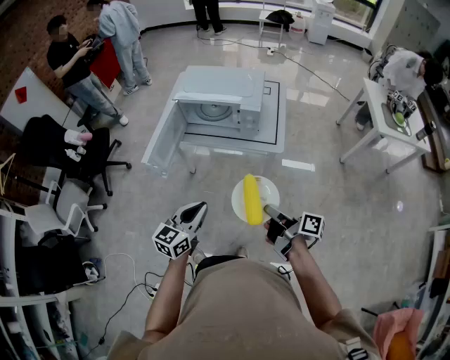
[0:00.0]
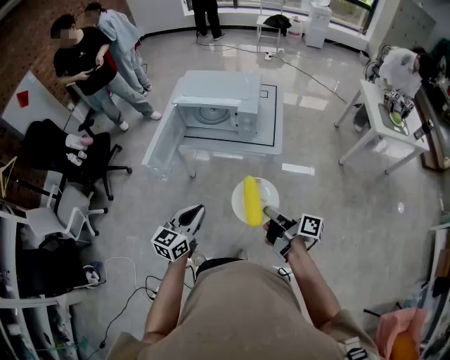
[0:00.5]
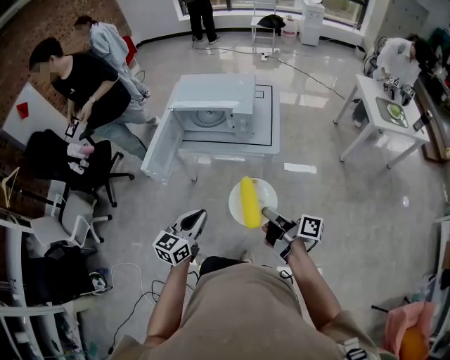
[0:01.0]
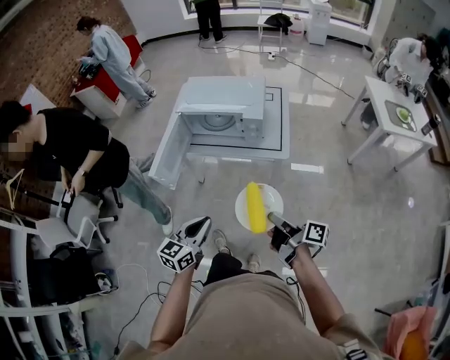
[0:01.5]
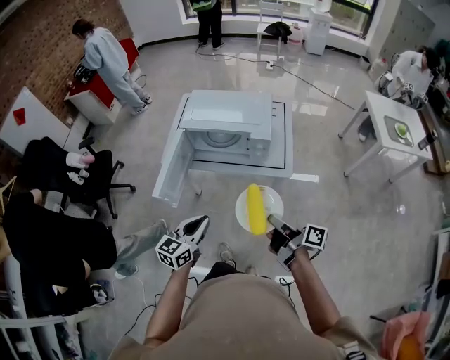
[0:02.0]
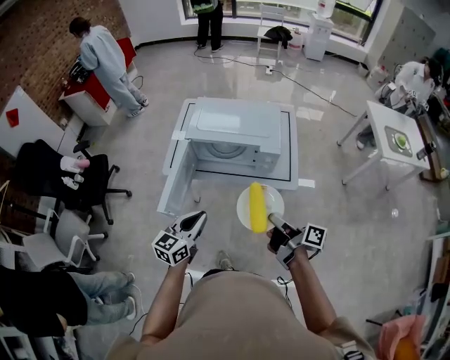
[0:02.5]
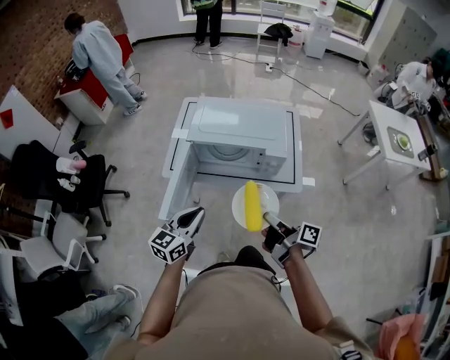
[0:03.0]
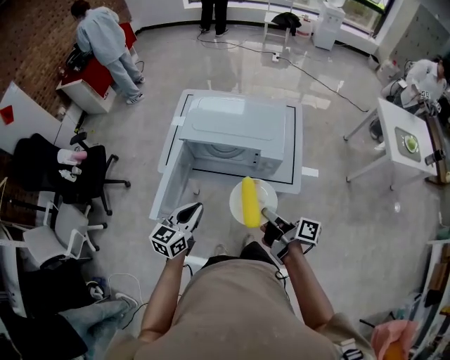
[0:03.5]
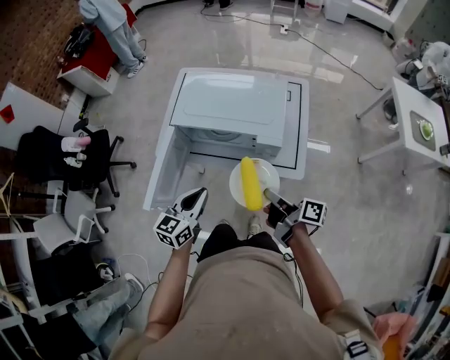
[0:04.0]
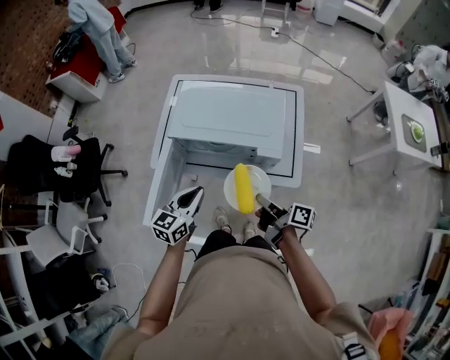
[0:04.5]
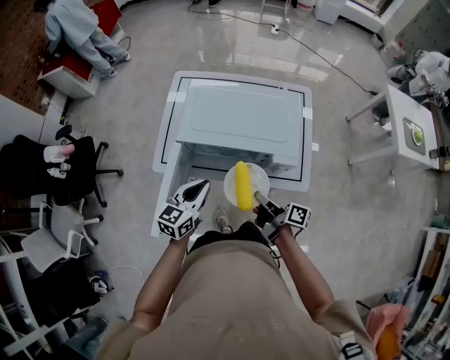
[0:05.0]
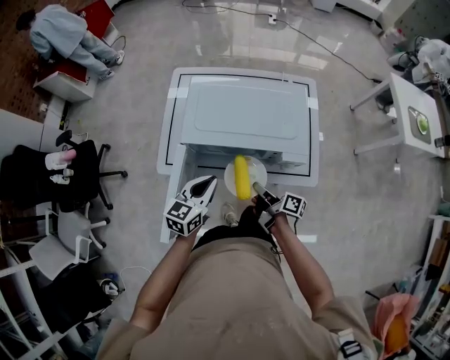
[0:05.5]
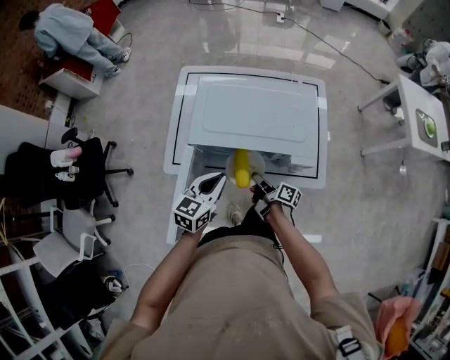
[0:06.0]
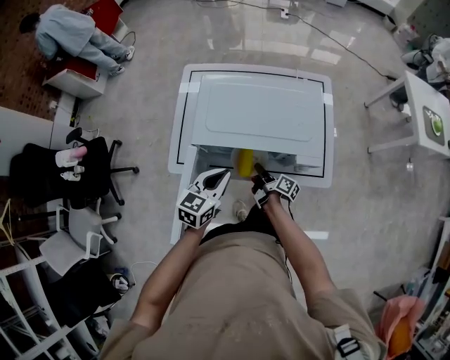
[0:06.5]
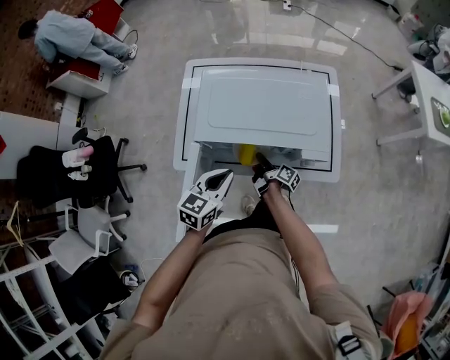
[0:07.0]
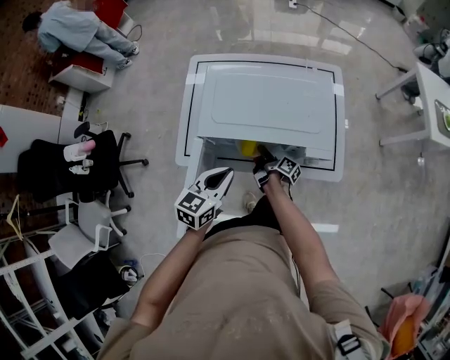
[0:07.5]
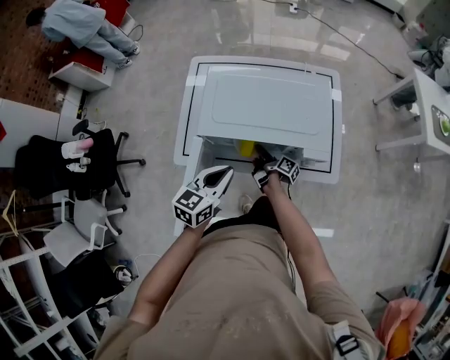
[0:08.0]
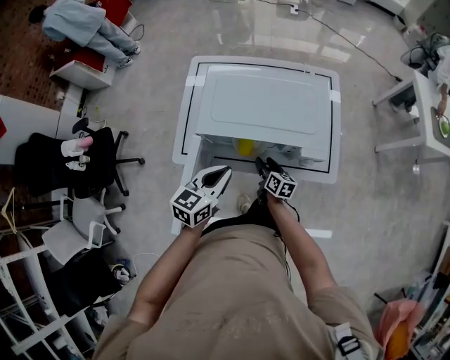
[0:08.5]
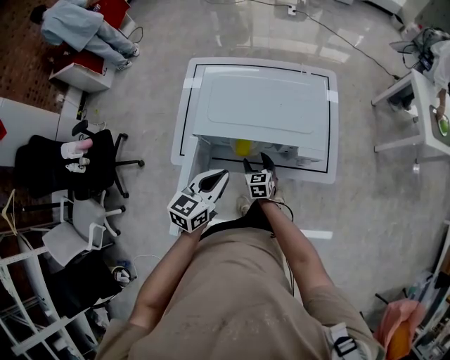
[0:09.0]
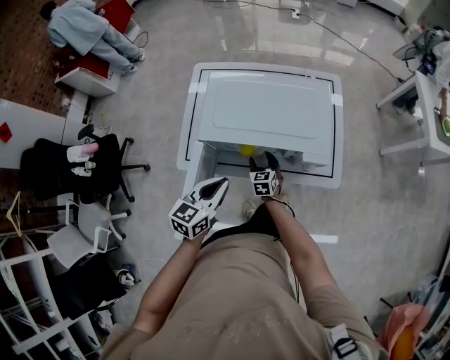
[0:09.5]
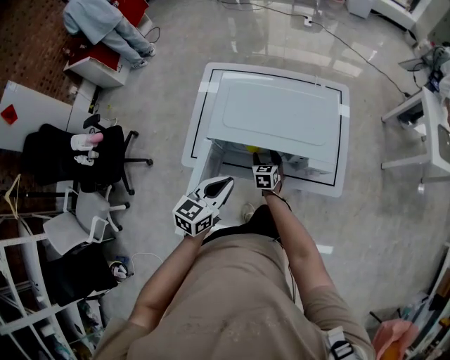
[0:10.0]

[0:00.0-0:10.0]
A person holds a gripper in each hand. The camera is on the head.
0:00.0 to 0:02.0: The left gripper travels forward and to the left by approximately 10 cm; the right gripper heads forward, covering about 10 cm.
0:02.0 to 0:04.0: Both grippers move forward, some 20 cm.
0:04.0 to 0:06.0: The left gripper travels forward and downward by some 15 cm; the right gripper heads downward, forward and to the left, covering about 30 cm.
0:06.0 to 0:08.0: The right gripper moves forward and downward, about 10 cm, and opens up.
0:08.0 to 0:10.0: The right gripper rotates around the line of its fingers by some 80 degrees, counterclockwise from behind, and opens its fingers.

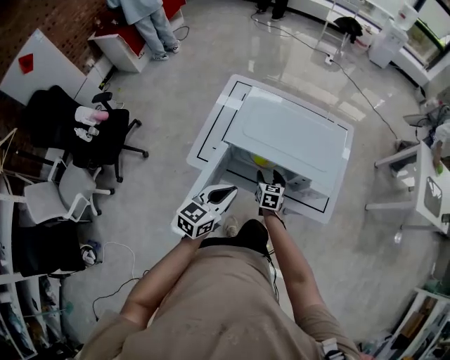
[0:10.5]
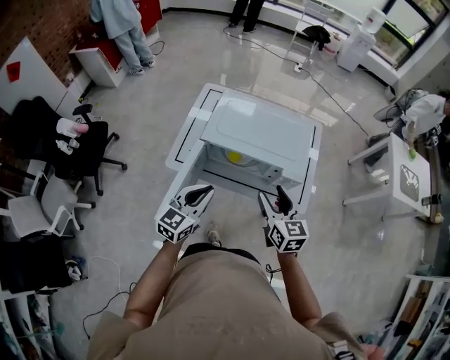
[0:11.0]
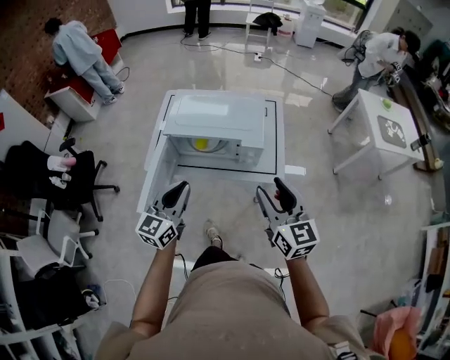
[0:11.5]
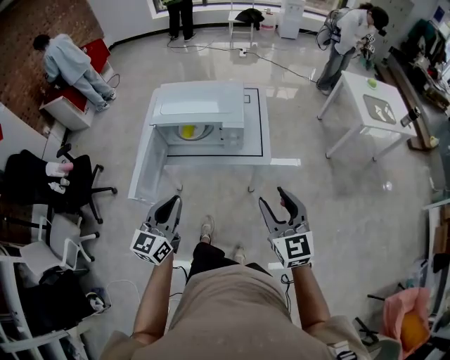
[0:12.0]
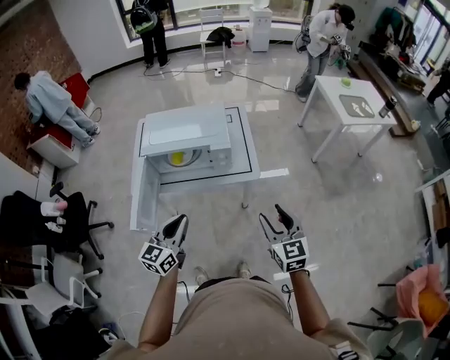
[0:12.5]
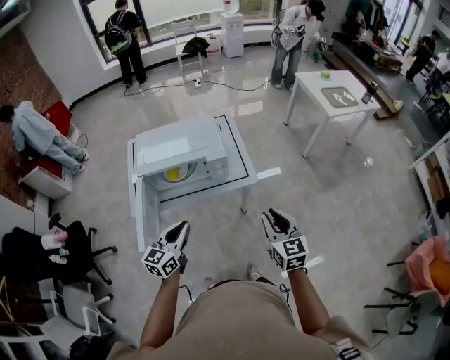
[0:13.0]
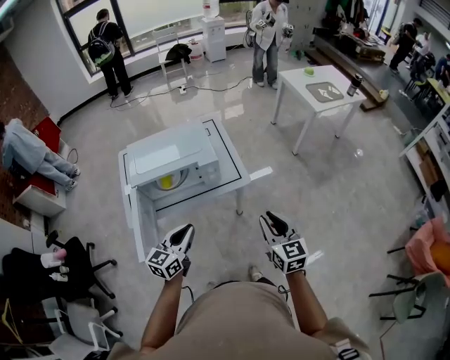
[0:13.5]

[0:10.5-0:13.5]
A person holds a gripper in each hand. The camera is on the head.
0:10.5 to 0:12.0: The left gripper goes about 30 cm backward, to the right and upward; the right gripper travels backward, upward and to the right by approximately 60 cm, and rotates roughly 30 degrees.
0:12.0 to 0:13.5: The left gripper is displaced forward and downward by some 10 cm, and turns by roughly 30 degrees; the right gripper heads downward, covering about 5 cm, swivels approximately 30 degrees, and closes its fingers.

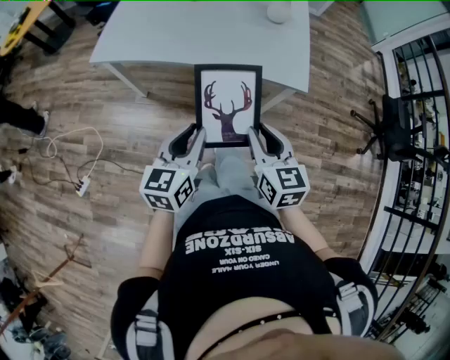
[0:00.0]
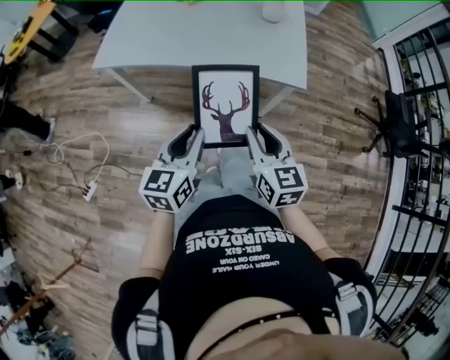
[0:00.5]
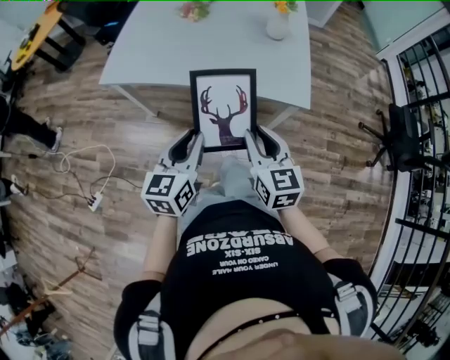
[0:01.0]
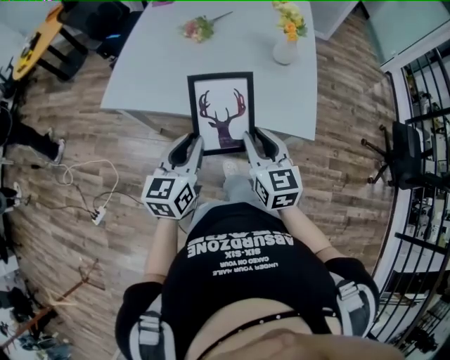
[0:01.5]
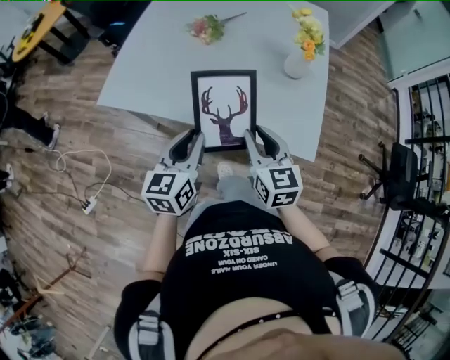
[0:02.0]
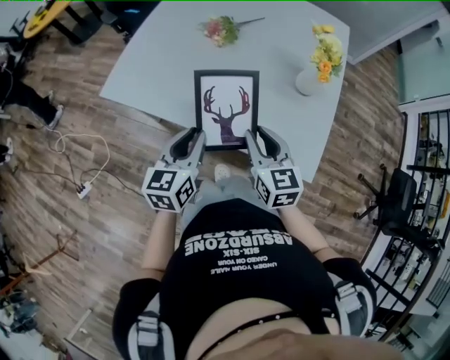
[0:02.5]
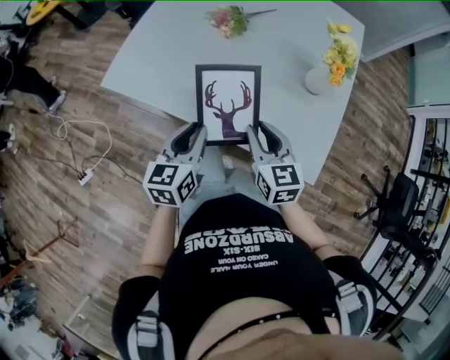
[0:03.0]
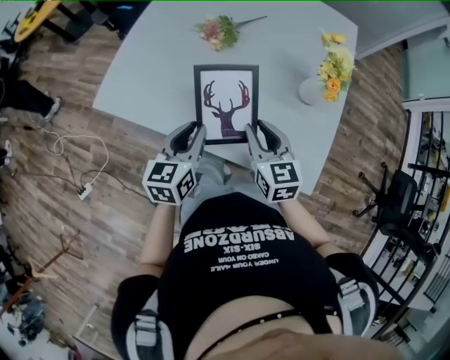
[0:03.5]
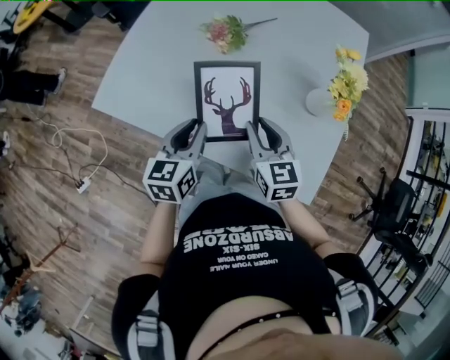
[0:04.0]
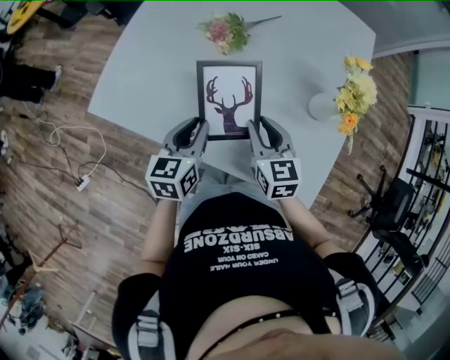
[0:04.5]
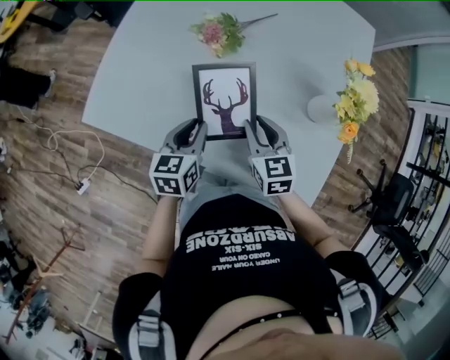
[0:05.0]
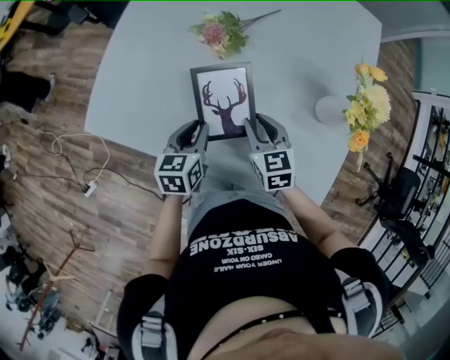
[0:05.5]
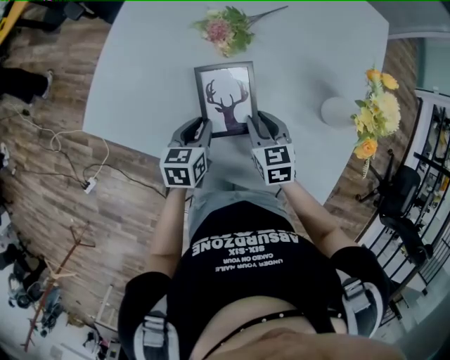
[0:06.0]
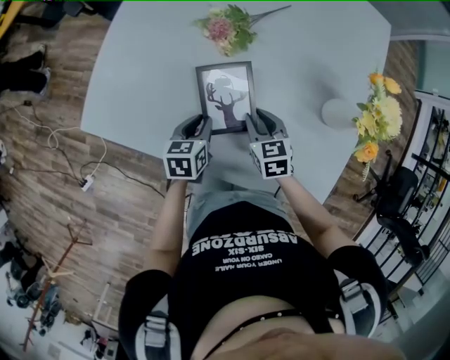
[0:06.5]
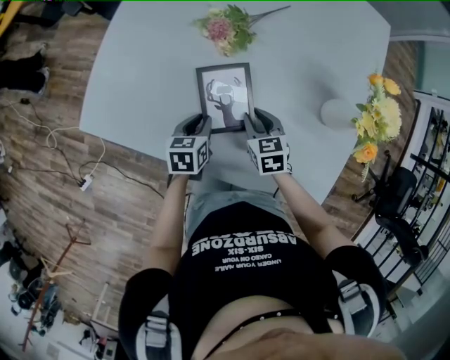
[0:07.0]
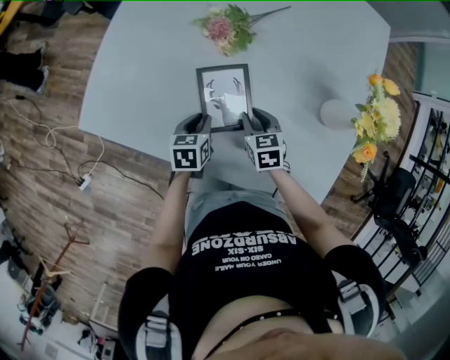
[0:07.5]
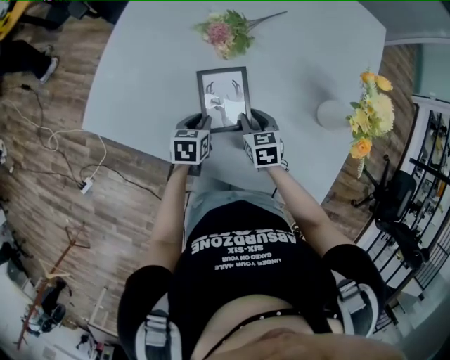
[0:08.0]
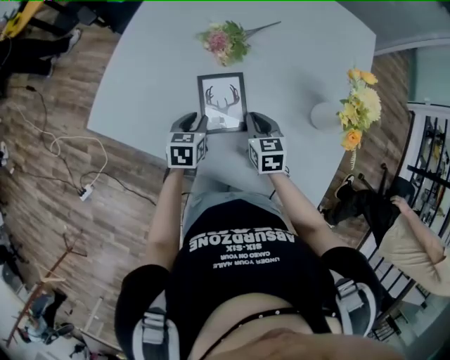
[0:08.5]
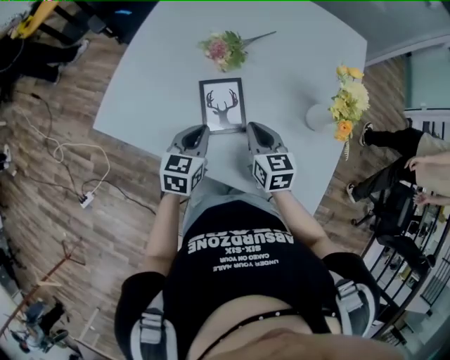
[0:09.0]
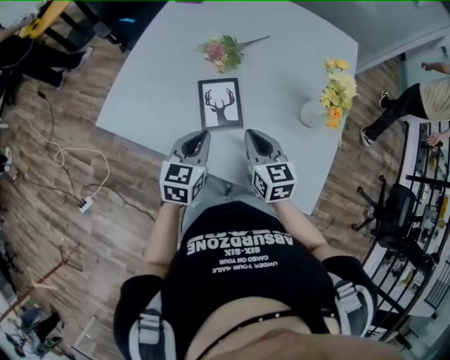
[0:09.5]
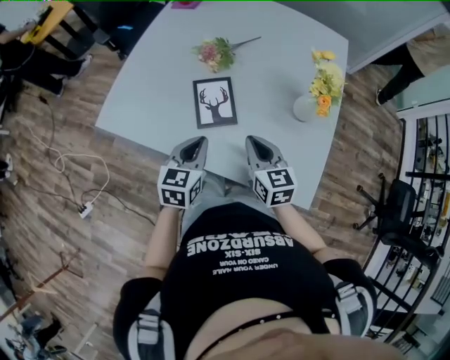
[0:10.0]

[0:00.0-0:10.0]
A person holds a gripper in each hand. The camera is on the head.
0:00.0 to 0:02.0: Both grippers move forward, roughly 25 cm.
0:02.0 to 0:04.0: Both grippers move forward, about 20 cm.
0:04.0 to 0:06.0: The two grippers go some 15 cm downward and forward.
0:06.0 to 0:08.0: The grippers both shift downward by about 5 cm.
0:08.0 to 0:10.0: Both grippers move upward and backward, roughly 25 cm. The left gripper swivels some 30 degrees, while the right gripper changes its angle by approximately 30 degrees, and closes up.

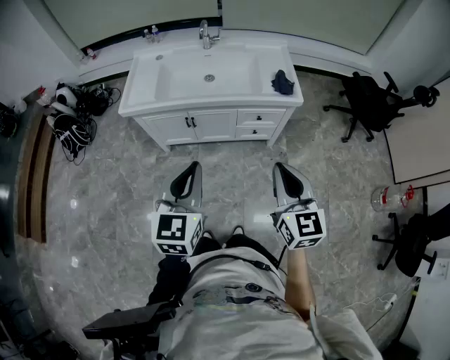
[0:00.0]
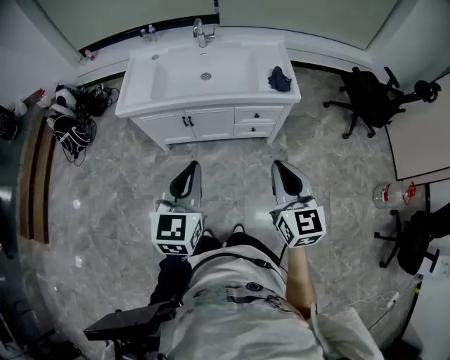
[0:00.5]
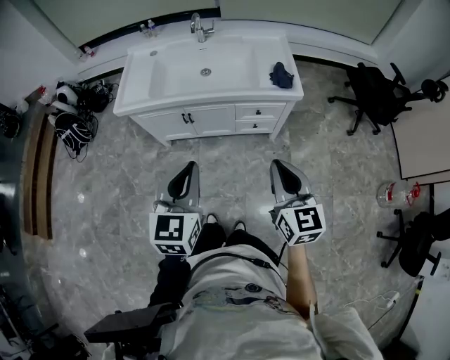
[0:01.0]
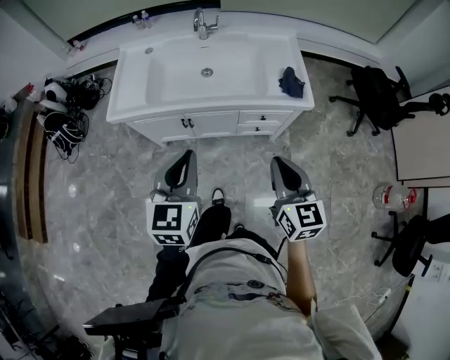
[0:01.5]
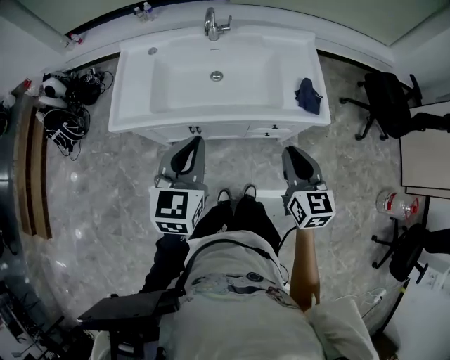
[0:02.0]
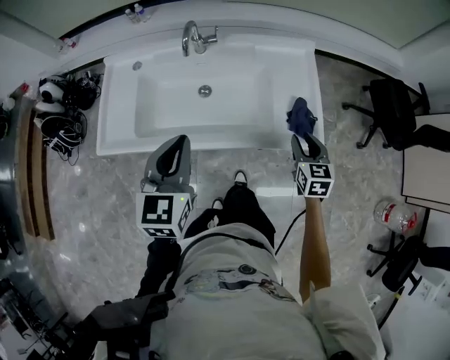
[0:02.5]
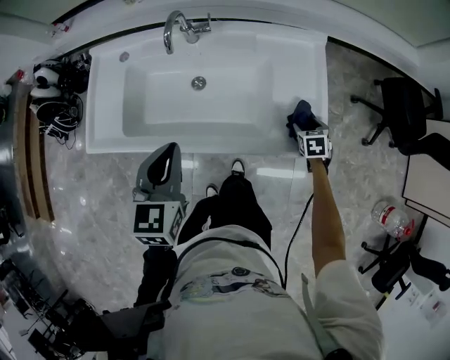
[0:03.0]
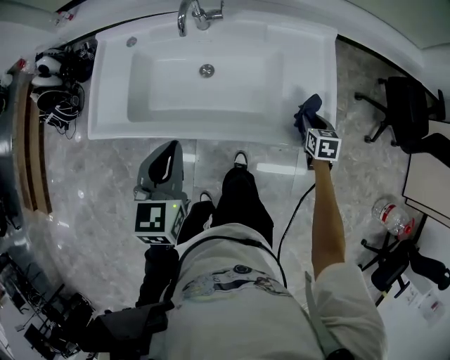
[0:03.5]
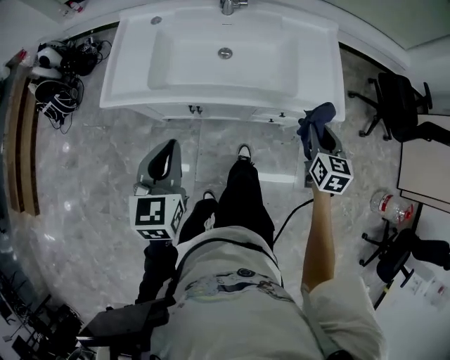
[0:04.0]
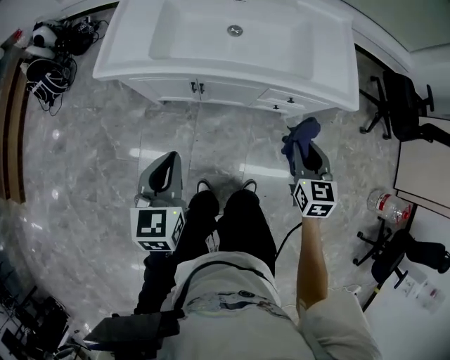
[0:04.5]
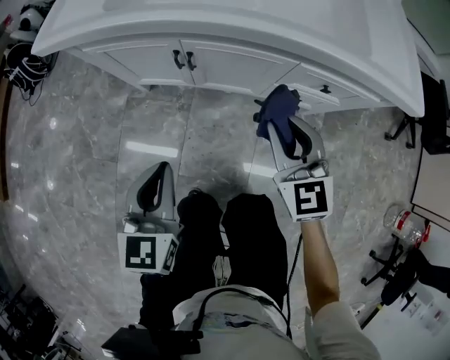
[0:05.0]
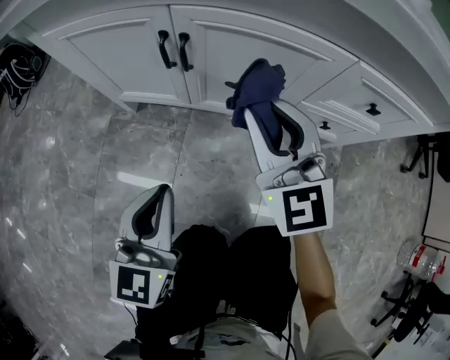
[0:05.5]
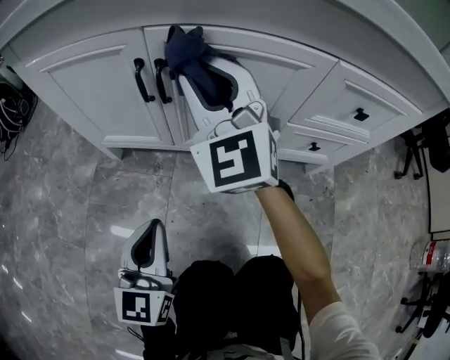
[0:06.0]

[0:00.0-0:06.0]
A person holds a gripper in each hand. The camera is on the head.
0:00.0 to 0:02.0: The two grippers go approximately 25 cm forward.
0:02.0 to 0:04.0: The right gripper shifts some 15 cm downward, forward and to the right, and opens and closes again. Meanwhile the left gripper goes some 10 cm to the left and downward, and moves roughly 15 cm forward and comes back.
0:04.0 to 0:06.0: The right gripper is displaced downward and to the left by approximately 50 cm, and tilts its fingers approximately 30 degrees upward. The left gripper travels downward by about 60 cm.
